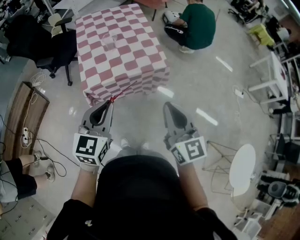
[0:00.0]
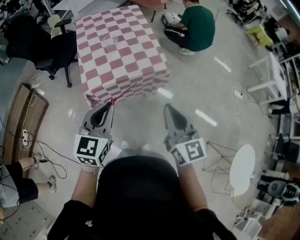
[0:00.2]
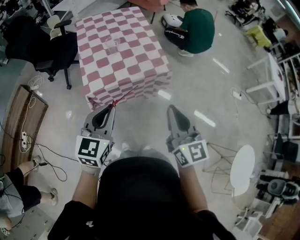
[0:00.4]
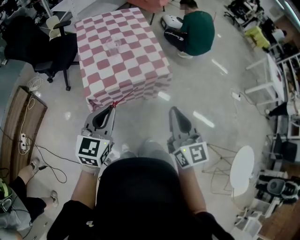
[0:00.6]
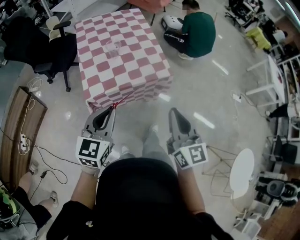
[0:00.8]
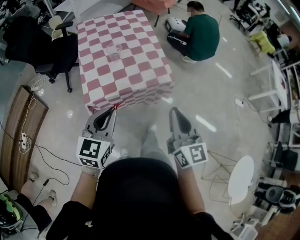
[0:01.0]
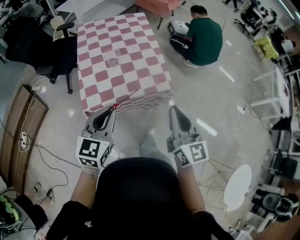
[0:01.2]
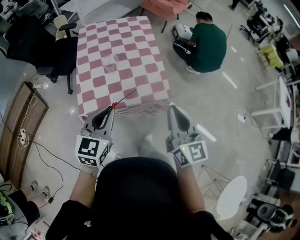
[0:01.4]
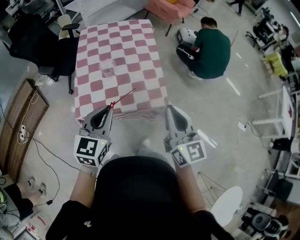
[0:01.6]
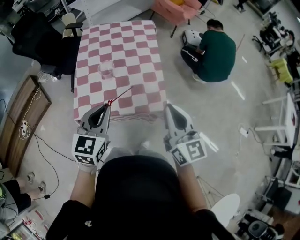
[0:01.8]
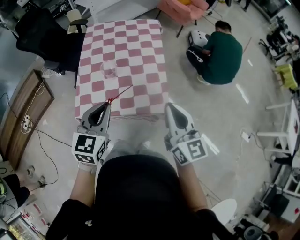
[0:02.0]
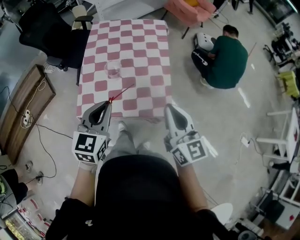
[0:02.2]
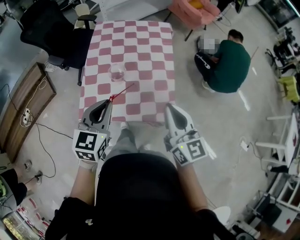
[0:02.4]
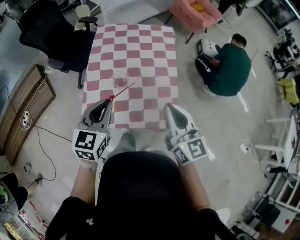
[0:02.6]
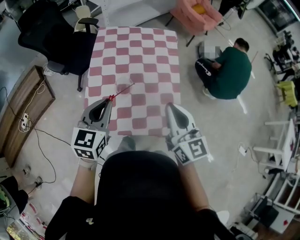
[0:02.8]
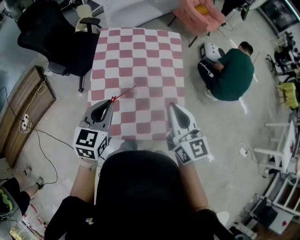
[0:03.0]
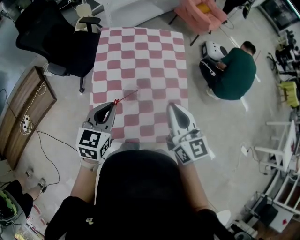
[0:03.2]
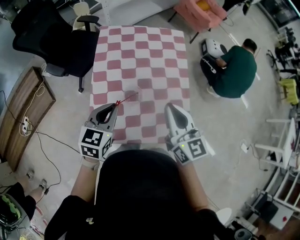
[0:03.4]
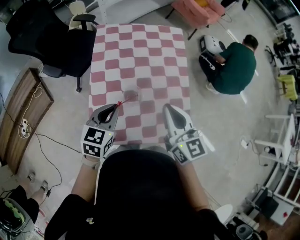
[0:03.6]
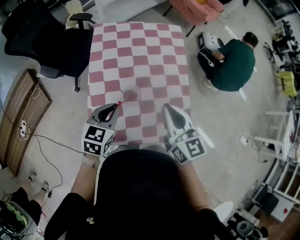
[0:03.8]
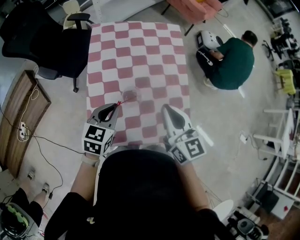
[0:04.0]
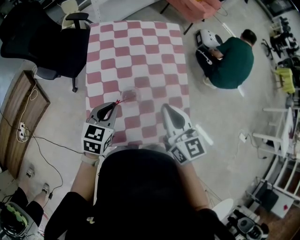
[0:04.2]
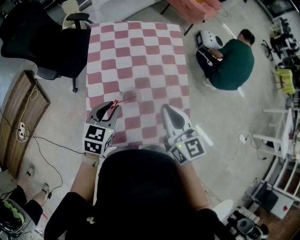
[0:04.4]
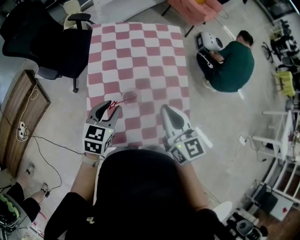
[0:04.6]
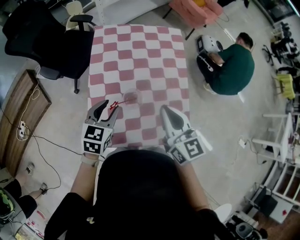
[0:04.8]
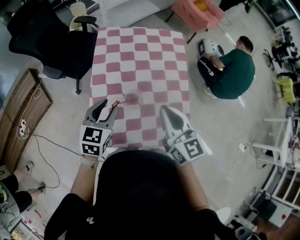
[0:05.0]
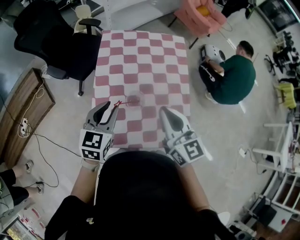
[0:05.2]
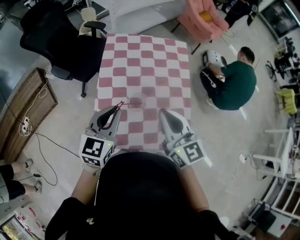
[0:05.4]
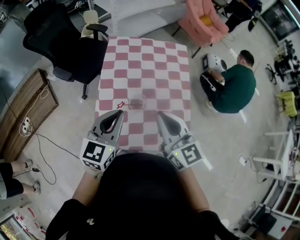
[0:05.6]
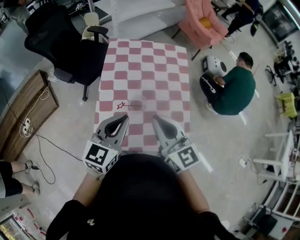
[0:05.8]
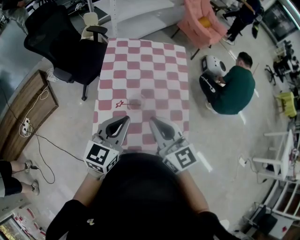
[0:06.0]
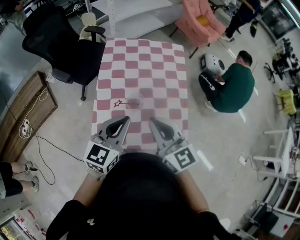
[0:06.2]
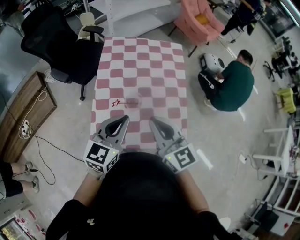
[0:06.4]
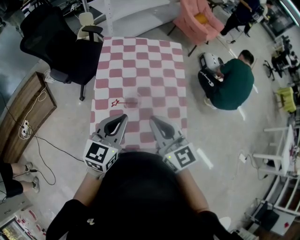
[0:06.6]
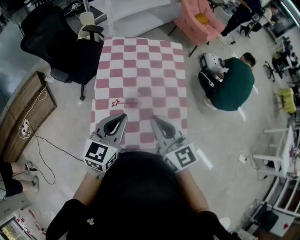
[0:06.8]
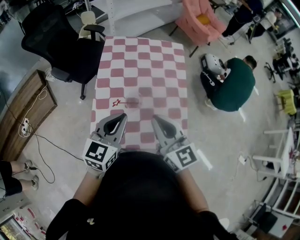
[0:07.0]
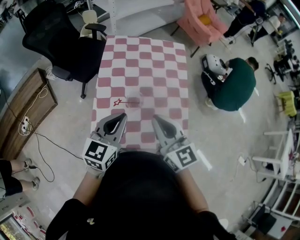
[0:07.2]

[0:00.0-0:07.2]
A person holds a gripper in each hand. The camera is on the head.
0:00.0 to 0:01.4: The two grippers go some 20 cm forward.
0:01.4 to 0:02.8: The two grippers go about 20 cm forward.
0:02.8 to 0:04.4: The left gripper goes roughly 15 cm downward and forward, while the right gripper heads forward, to the left and downward, covering some 15 cm.
0:04.4 to 0:05.8: The left gripper travels upward and backward by approximately 15 cm, and turns by roughly 20 degrees. The right gripper is displaced upward, to the left and backward by about 10 cm.
0:05.8 to 0:07.2: The grippers make only small movements.

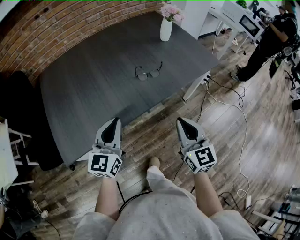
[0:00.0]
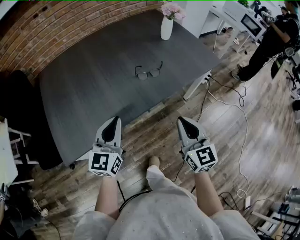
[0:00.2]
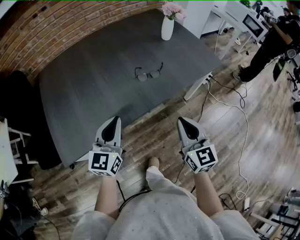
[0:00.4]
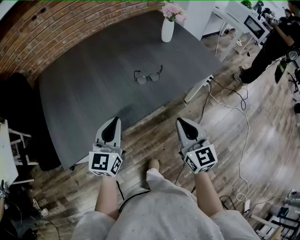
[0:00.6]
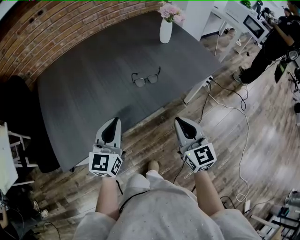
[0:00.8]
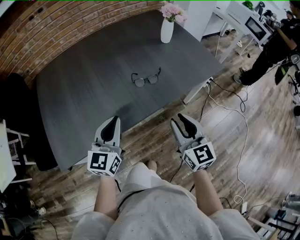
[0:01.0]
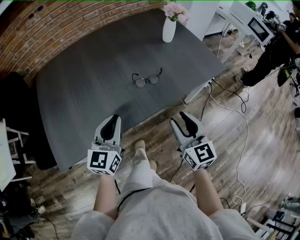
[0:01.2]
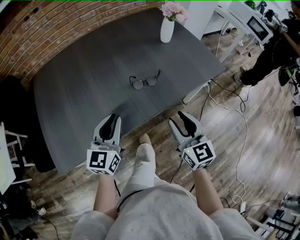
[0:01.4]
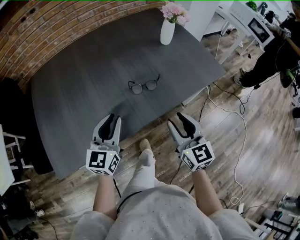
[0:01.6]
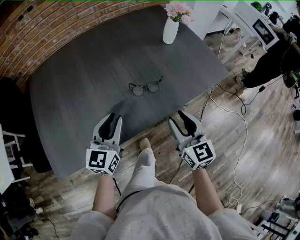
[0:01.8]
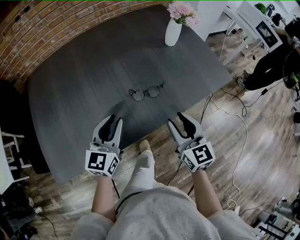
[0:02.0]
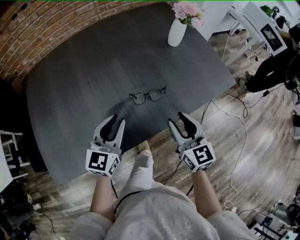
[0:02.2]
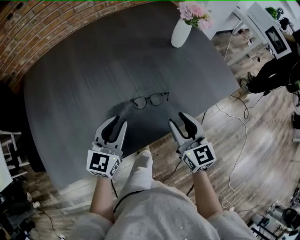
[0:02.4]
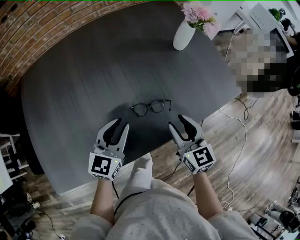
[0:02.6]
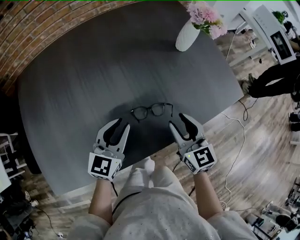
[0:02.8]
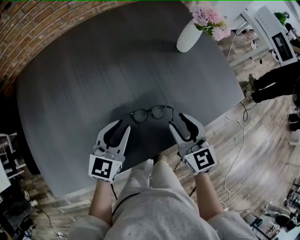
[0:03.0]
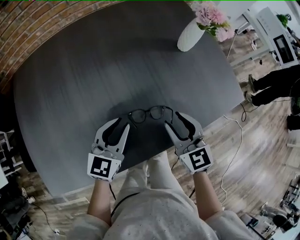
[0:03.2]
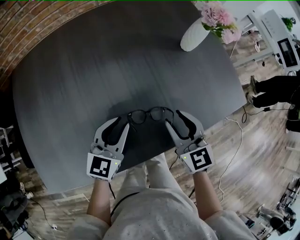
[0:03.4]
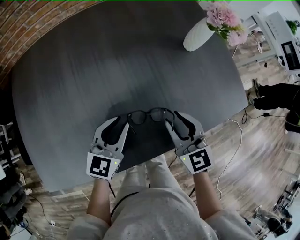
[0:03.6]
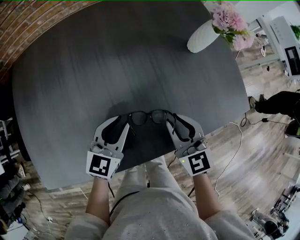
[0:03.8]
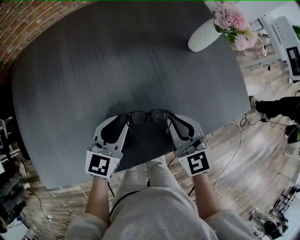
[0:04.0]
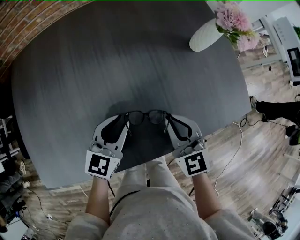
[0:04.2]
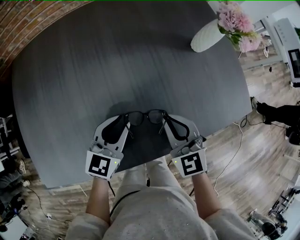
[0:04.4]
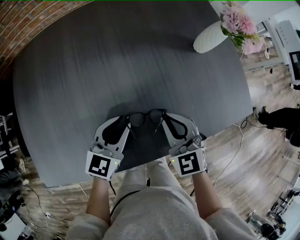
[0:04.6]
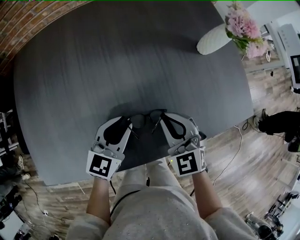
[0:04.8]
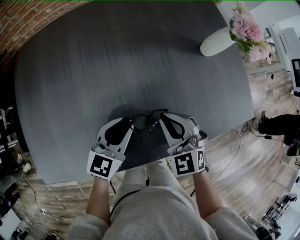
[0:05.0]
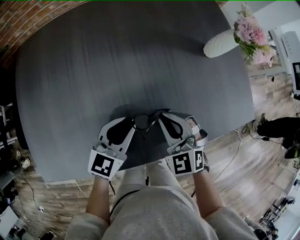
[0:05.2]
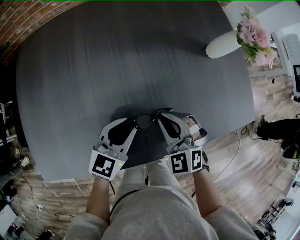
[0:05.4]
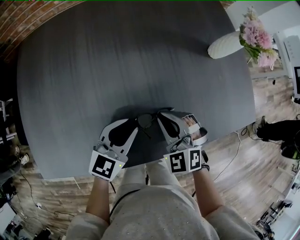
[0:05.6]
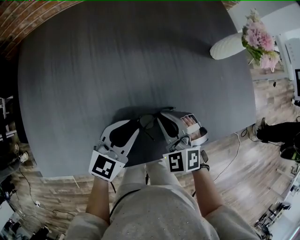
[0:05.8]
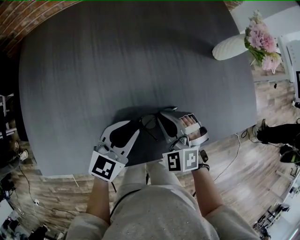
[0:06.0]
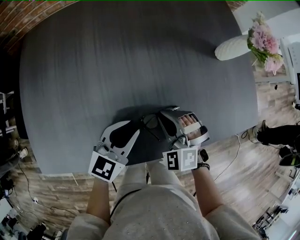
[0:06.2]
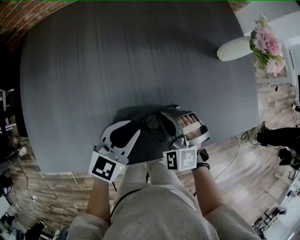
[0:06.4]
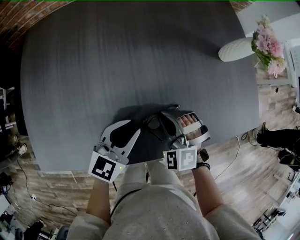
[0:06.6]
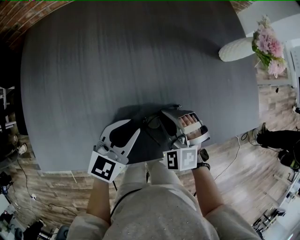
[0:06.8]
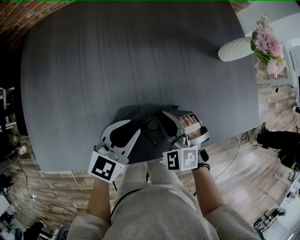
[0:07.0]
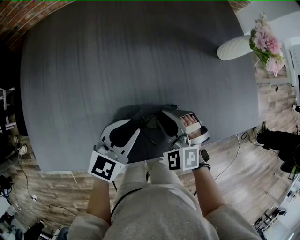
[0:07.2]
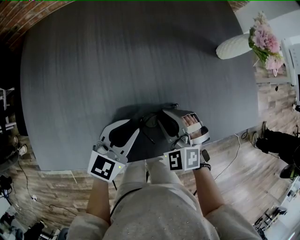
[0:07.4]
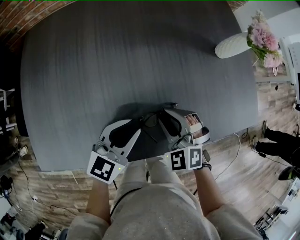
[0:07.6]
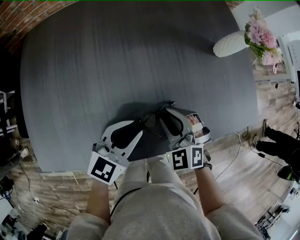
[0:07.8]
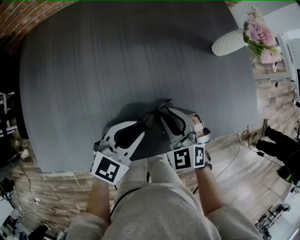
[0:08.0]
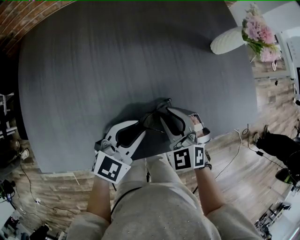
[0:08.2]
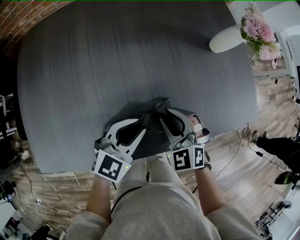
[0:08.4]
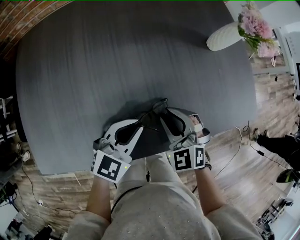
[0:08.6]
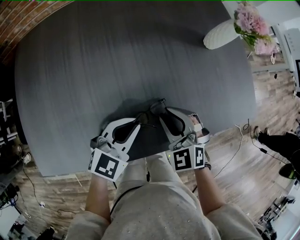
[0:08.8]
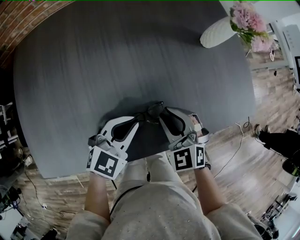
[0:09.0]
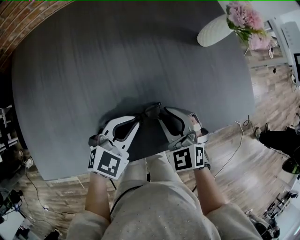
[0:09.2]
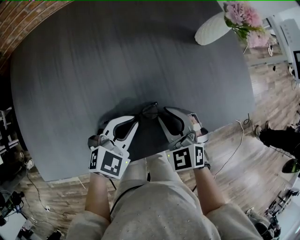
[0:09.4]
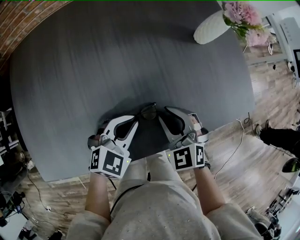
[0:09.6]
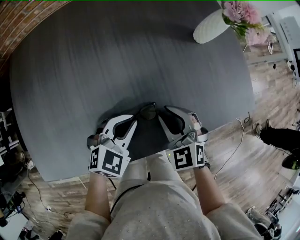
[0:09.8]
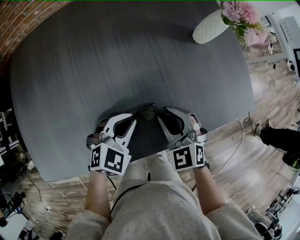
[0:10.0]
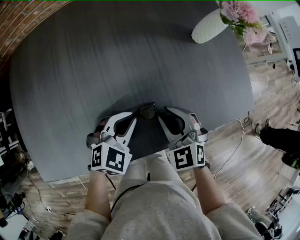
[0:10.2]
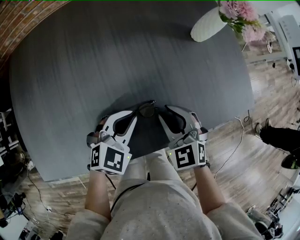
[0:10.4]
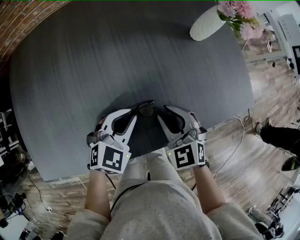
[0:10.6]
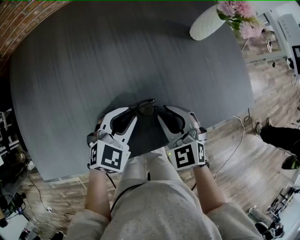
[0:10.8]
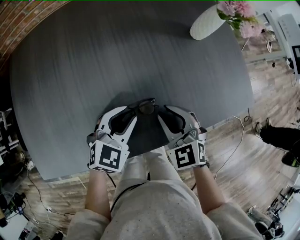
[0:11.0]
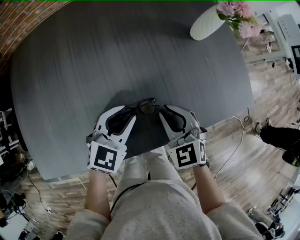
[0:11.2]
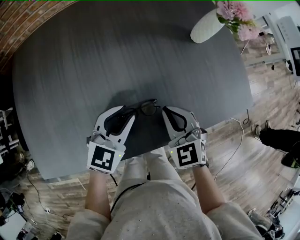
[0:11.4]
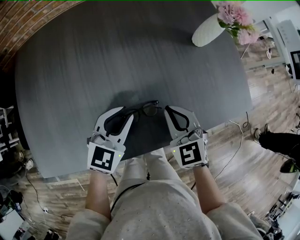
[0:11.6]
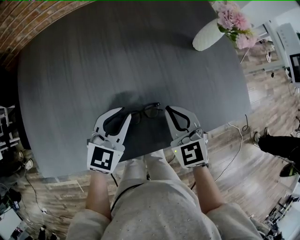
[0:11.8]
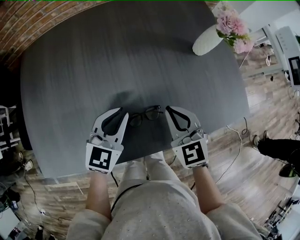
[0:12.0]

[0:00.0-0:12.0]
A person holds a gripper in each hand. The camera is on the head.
0:00.0 to 0:01.6: The two grippers go approximately 15 cm forward. The right gripper opens up.
0:01.6 to 0:03.0: The right gripper goes roughly 20 cm forward; the left gripper travels forward and downward by some 15 cm.
0:03.0 to 0:04.4: The left gripper moves some 5 cm, while the right gripper shifts by approximately 5 cm, changes its angle by roughly 20 degrees, and closes.
0:04.4 to 0:06.0: The right gripper is displaced to the left by approximately 10 cm, and changes its angle by some 40 degrees.
0:06.0 to 0:07.6: The grippers stay close to where they were, moving slightly.
0:07.6 to 0:09.0: The left gripper moves about 5 cm. Meanwhile the right gripper shifts some 5 cm to the right.
0:09.0 to 0:10.4: The grippers make only small movements.
0:10.4 to 0:12.0: The right gripper moves upward, roughly 5 cm, and closes up. The left gripper moves upward and to the left, roughly 10 cm, and turns by about 30 degrees.

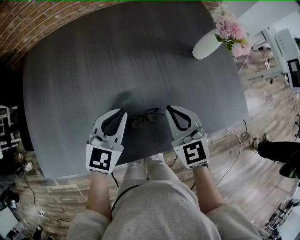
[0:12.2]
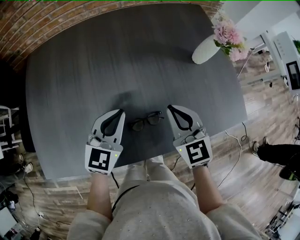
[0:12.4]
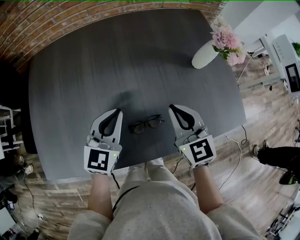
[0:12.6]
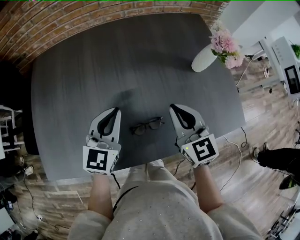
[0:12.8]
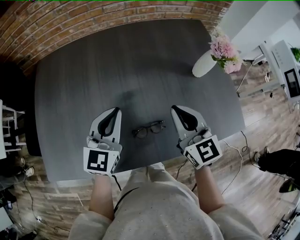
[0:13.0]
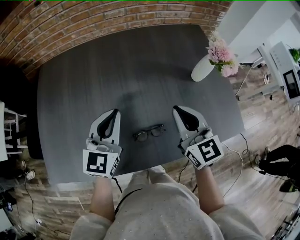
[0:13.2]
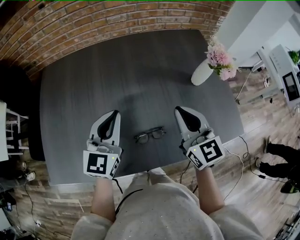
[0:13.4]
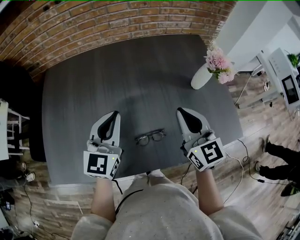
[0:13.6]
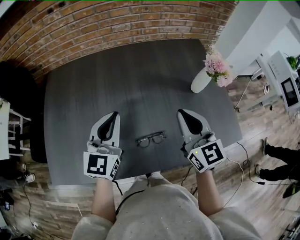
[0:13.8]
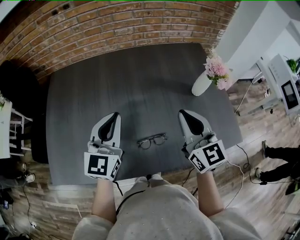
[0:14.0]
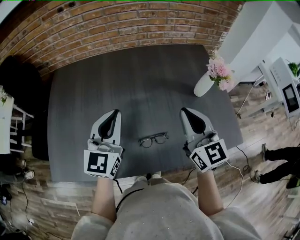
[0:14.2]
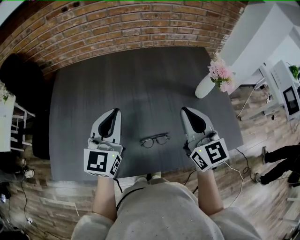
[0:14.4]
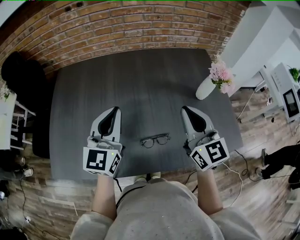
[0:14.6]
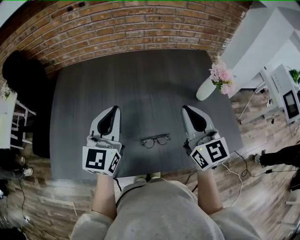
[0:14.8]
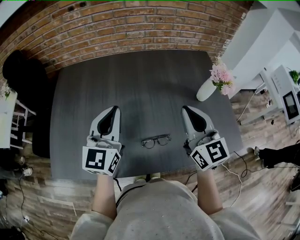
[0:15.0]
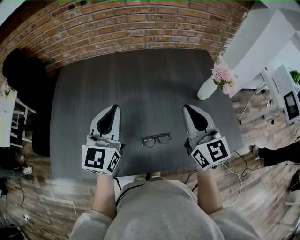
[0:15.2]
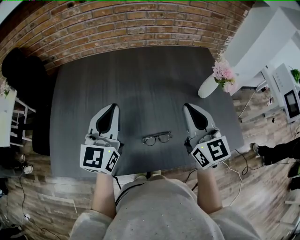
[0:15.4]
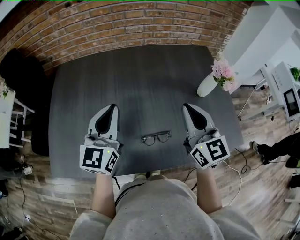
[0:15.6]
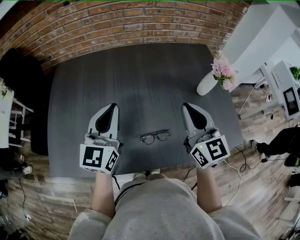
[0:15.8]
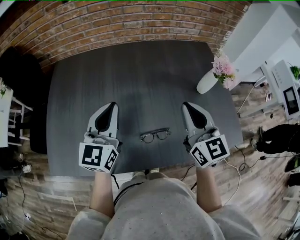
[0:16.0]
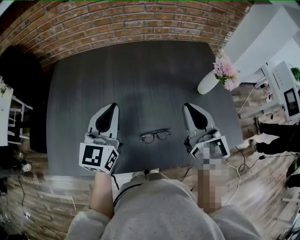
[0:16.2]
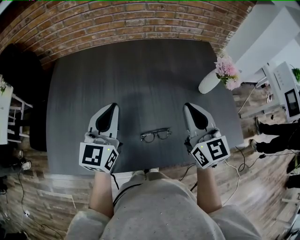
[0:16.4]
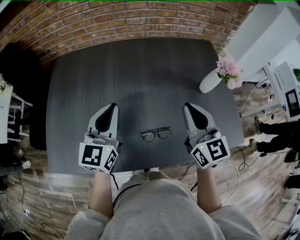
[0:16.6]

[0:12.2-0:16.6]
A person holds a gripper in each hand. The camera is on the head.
0:12.2 to 0:13.6: Both grippers move upward, approximately 15 cm. The left gripper turns by approximately 20 degrees, while the right gripper swivels some 20 degrees.
0:13.6 to 0:15.2: Both grippers move upward, roughly 5 cm.
0:15.2 to 0:16.6: The grippers make only small movements.
